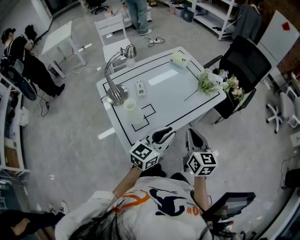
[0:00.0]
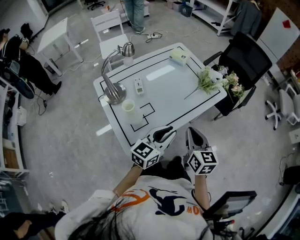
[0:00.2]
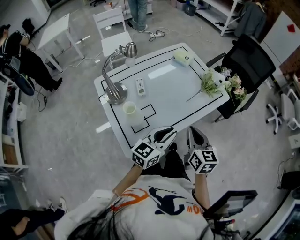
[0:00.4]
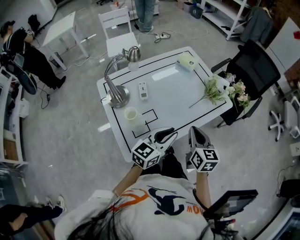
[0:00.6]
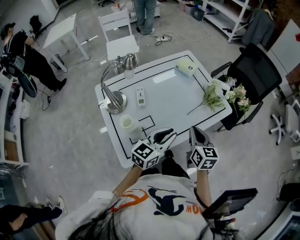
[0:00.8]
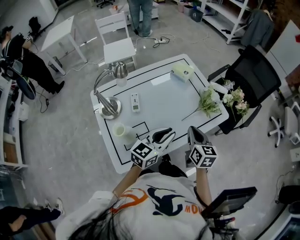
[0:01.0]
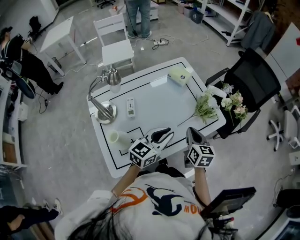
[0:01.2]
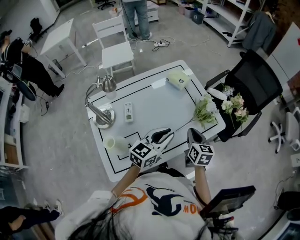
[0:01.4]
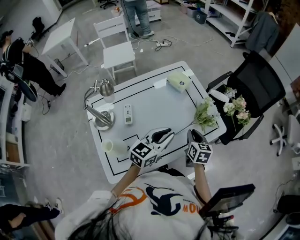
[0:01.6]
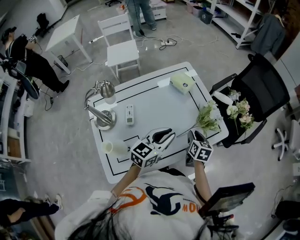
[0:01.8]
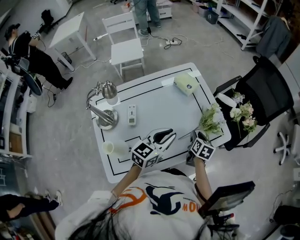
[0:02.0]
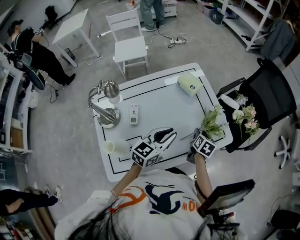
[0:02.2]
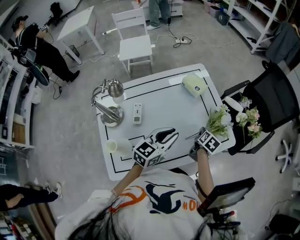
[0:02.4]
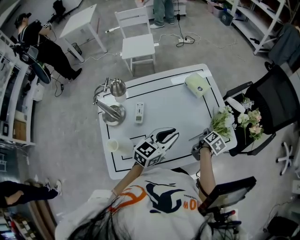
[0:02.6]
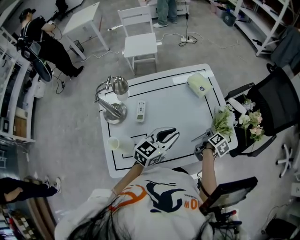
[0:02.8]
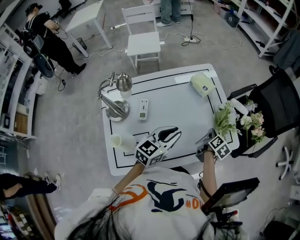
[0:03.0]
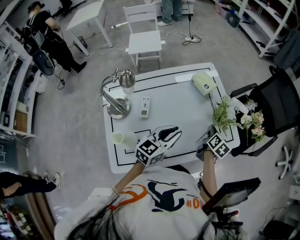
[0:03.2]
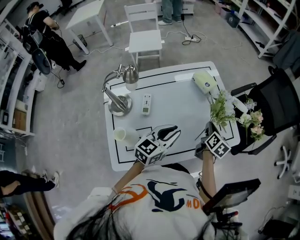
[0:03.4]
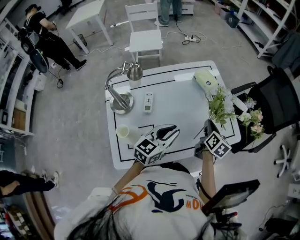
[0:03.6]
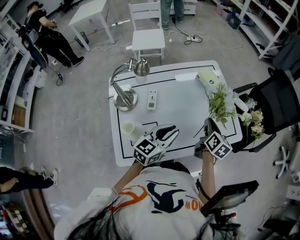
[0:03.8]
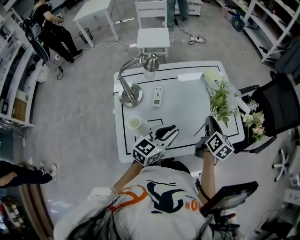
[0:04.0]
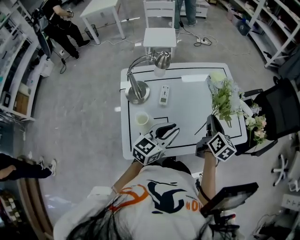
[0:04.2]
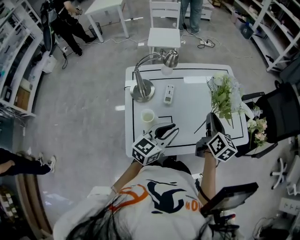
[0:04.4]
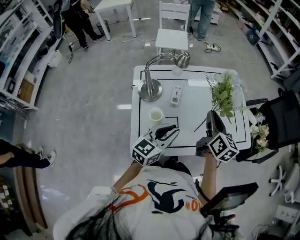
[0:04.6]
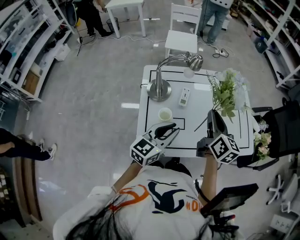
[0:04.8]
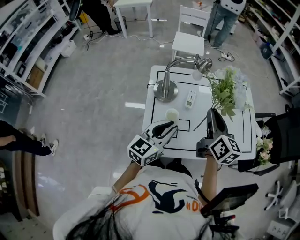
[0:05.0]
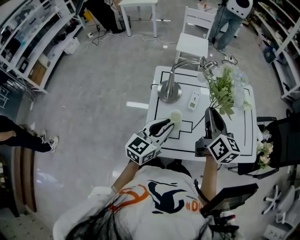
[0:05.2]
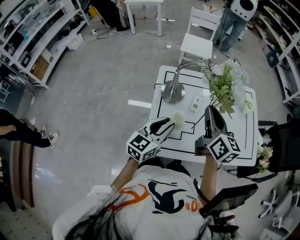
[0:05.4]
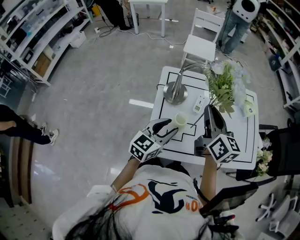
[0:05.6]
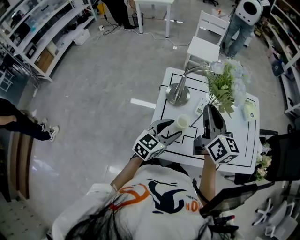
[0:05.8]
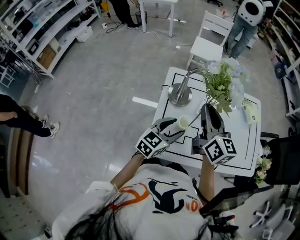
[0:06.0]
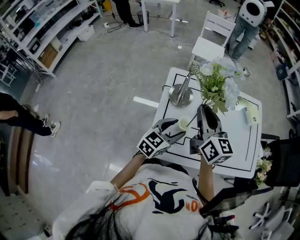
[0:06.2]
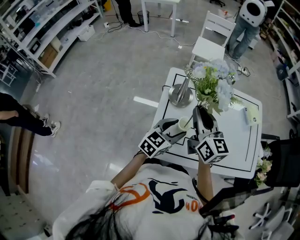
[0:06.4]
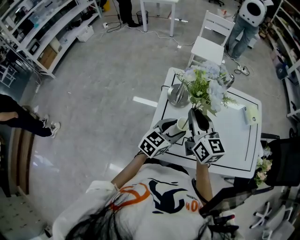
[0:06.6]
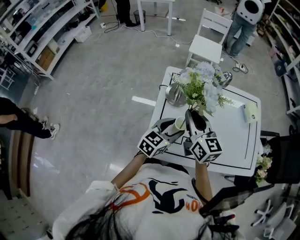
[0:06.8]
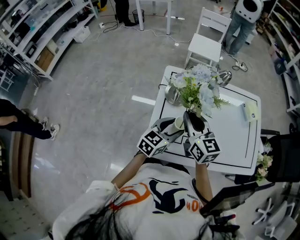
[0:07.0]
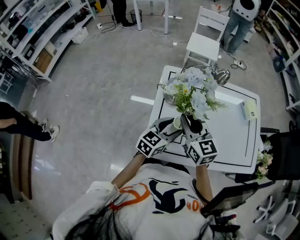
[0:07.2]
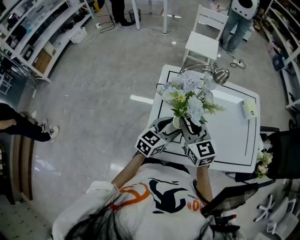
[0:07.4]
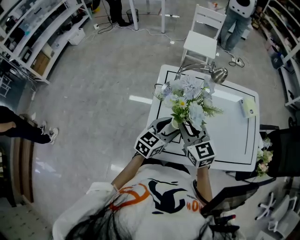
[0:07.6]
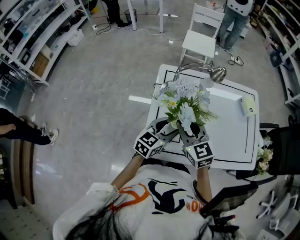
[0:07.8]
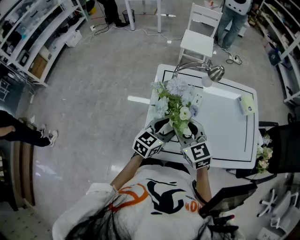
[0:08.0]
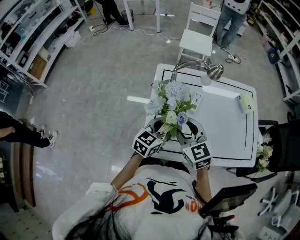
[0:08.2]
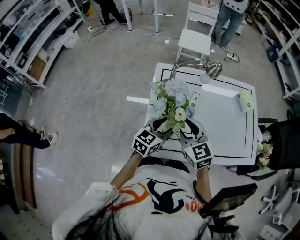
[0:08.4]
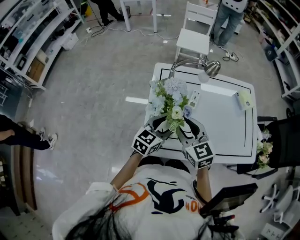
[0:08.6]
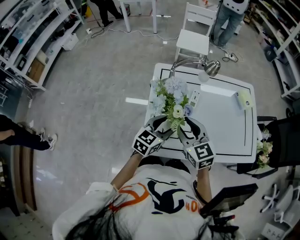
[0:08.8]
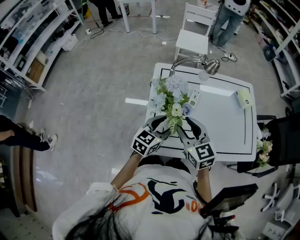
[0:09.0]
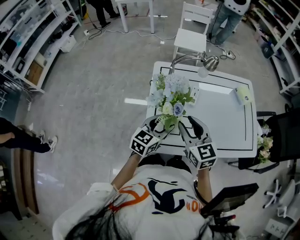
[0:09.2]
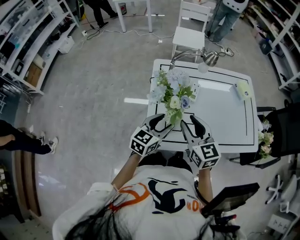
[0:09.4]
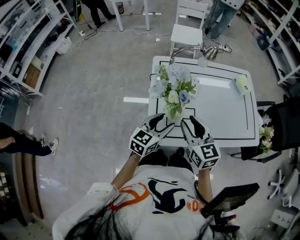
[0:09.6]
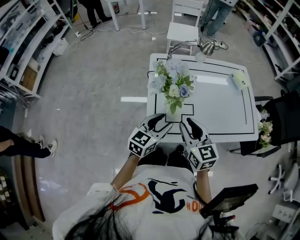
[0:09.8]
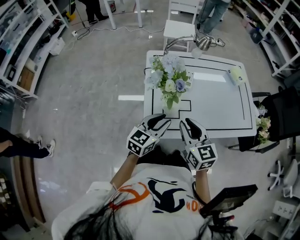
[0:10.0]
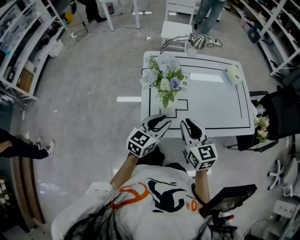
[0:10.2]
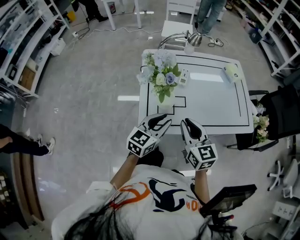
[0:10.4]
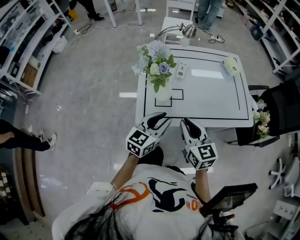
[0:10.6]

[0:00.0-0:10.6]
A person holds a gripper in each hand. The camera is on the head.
0:00.0 to 0:01.6: The right gripper shifts approximately 30 cm forward and downward, while the left gripper moves forward, roughly 25 cm.
0:01.6 to 0:03.0: The right gripper goes about 10 cm forward and downward, changes its angle by some 30 degrees, and opens, then closes again.
0:03.0 to 0:04.6: The right gripper goes about 35 cm upward, to the left and backward, and swivels about 40 degrees. Meanwhile the left gripper goes approximately 20 cm backward and to the left.
0:04.6 to 0:06.0: The left gripper travels to the left by about 10 cm, and opens. Meanwhile the right gripper goes some 20 cm to the left, and rotates about 30 degrees.
0:06.0 to 0:07.6: The right gripper goes about 10 cm downward, and swivels some 30 degrees.
0:07.6 to 0:09.0: The right gripper opens its fingers.
0:09.0 to 0:10.6: The left gripper is displaced backward by roughly 15 cm, and closes up, while the right gripper moves backward and to the right, about 15 cm, and closes its fingers.

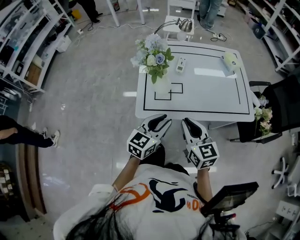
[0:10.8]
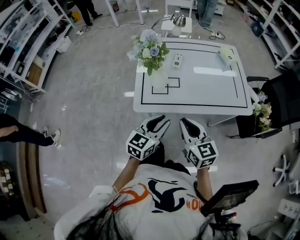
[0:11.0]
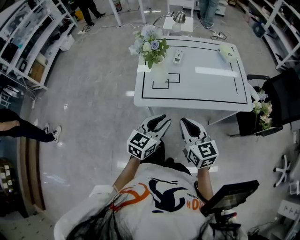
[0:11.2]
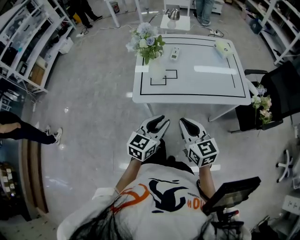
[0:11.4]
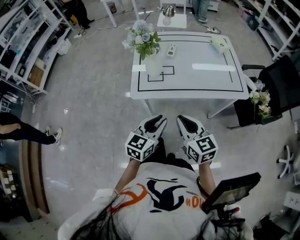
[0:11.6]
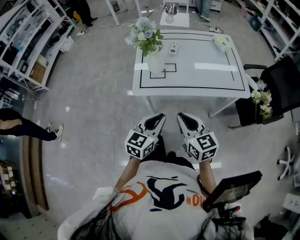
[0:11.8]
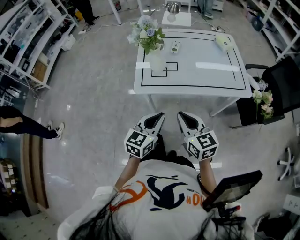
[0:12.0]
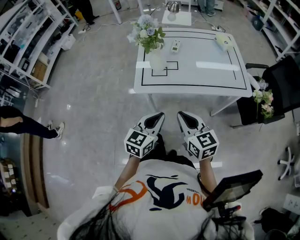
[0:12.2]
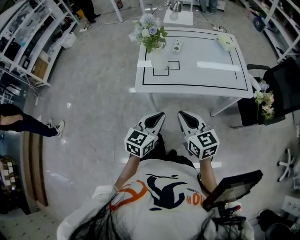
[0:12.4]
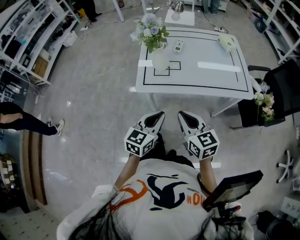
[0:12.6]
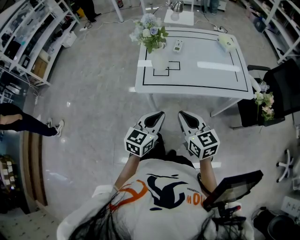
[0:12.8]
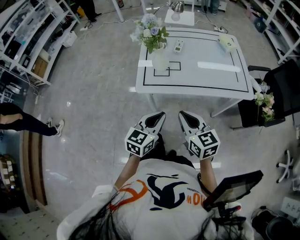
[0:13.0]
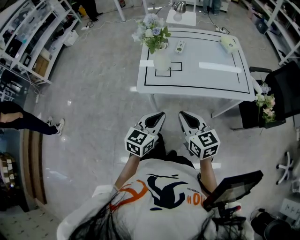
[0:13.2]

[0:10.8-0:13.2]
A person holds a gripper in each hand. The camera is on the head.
0:10.8 to 0:12.0: The grippers both shift backward by some 15 cm. The left gripper closes up.
0:12.0 to 0:13.2: The two grippers keep their place.

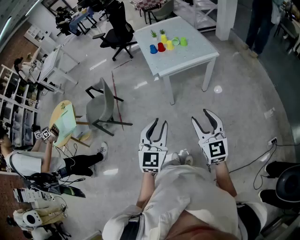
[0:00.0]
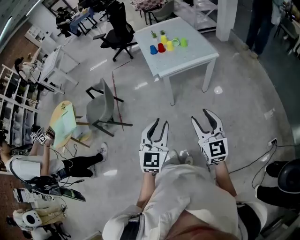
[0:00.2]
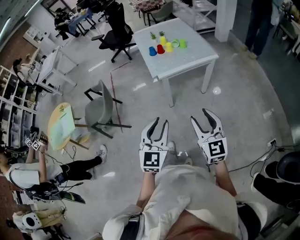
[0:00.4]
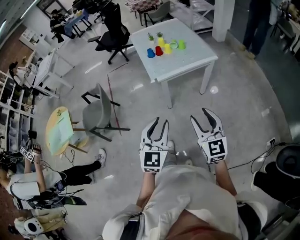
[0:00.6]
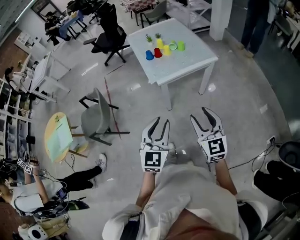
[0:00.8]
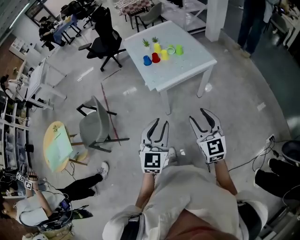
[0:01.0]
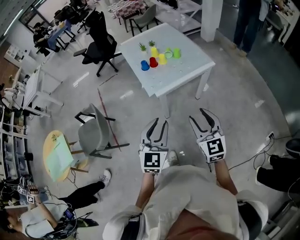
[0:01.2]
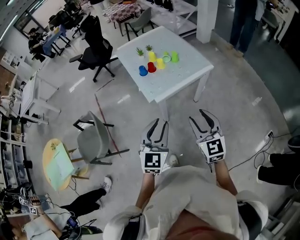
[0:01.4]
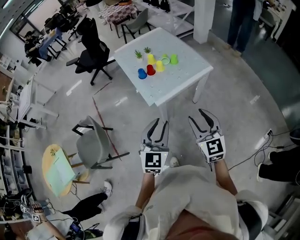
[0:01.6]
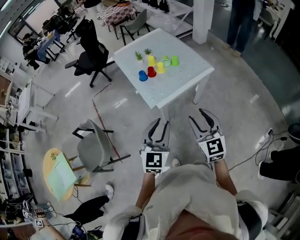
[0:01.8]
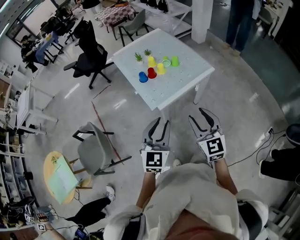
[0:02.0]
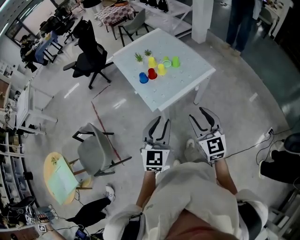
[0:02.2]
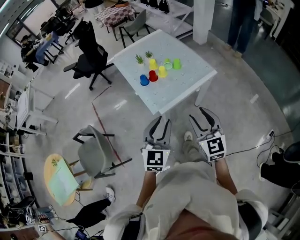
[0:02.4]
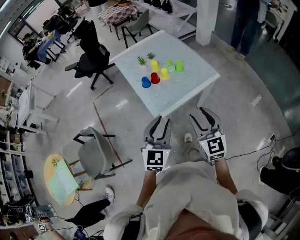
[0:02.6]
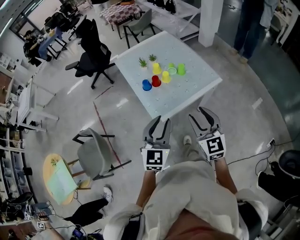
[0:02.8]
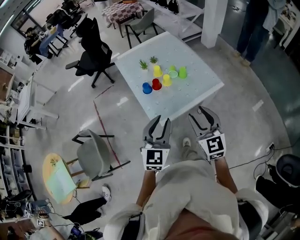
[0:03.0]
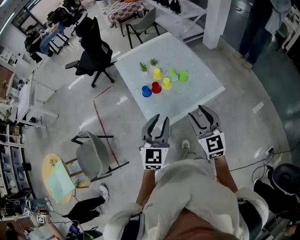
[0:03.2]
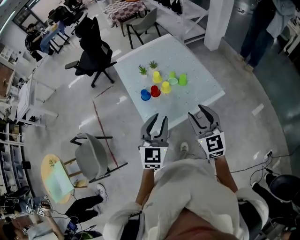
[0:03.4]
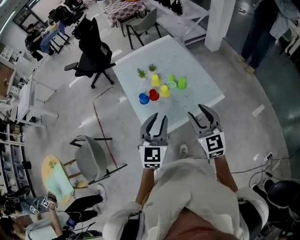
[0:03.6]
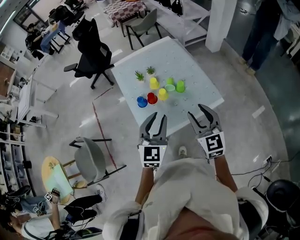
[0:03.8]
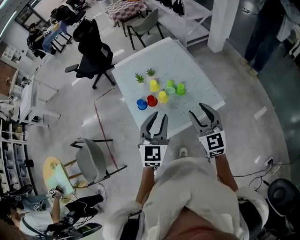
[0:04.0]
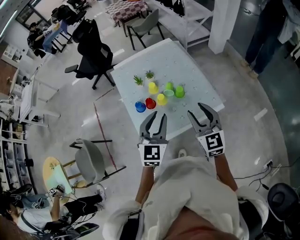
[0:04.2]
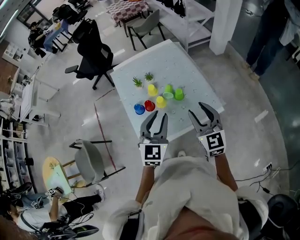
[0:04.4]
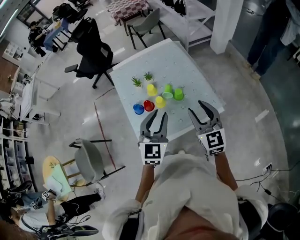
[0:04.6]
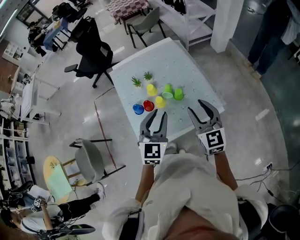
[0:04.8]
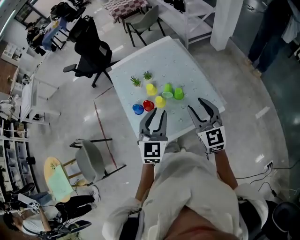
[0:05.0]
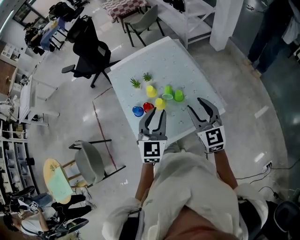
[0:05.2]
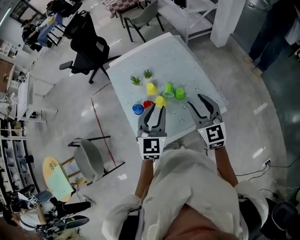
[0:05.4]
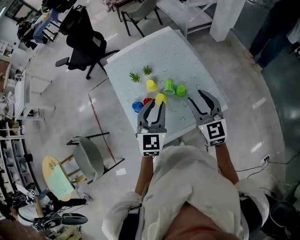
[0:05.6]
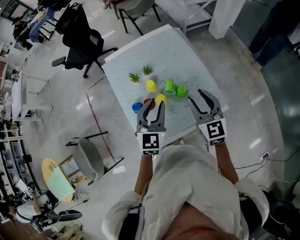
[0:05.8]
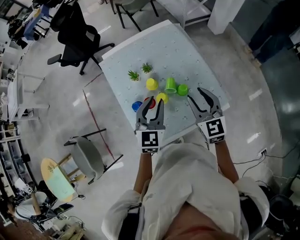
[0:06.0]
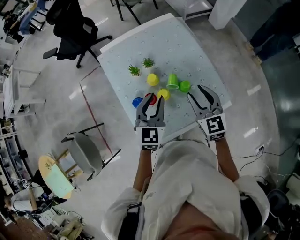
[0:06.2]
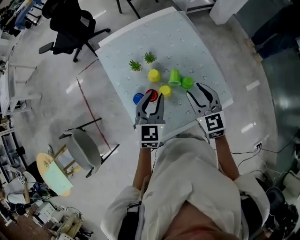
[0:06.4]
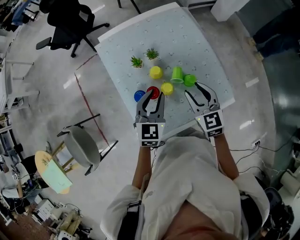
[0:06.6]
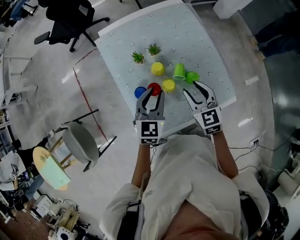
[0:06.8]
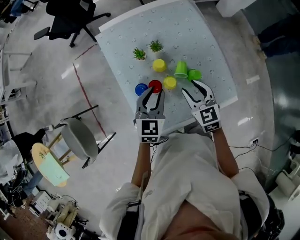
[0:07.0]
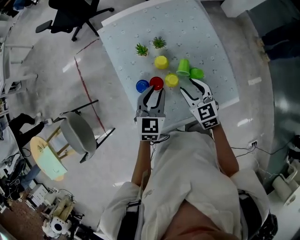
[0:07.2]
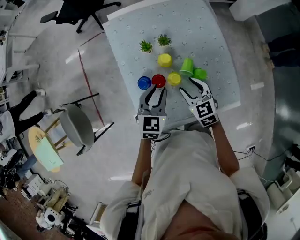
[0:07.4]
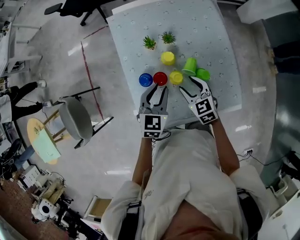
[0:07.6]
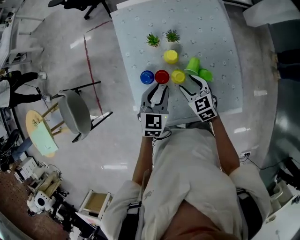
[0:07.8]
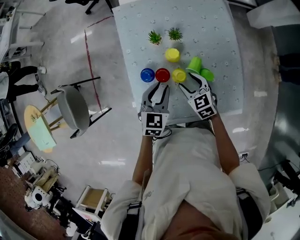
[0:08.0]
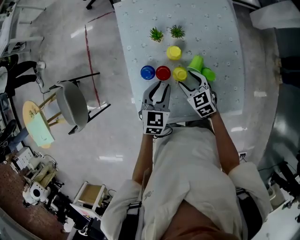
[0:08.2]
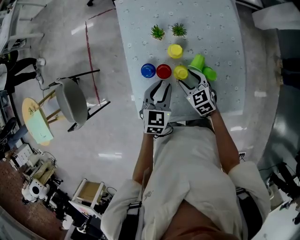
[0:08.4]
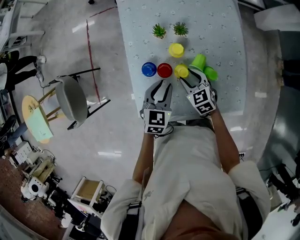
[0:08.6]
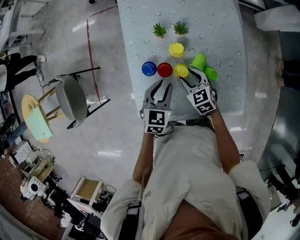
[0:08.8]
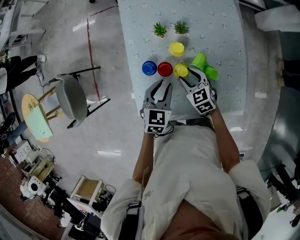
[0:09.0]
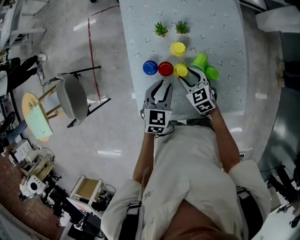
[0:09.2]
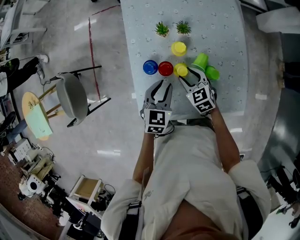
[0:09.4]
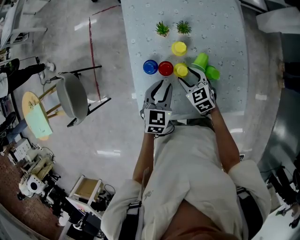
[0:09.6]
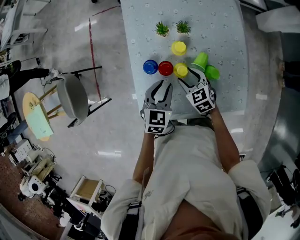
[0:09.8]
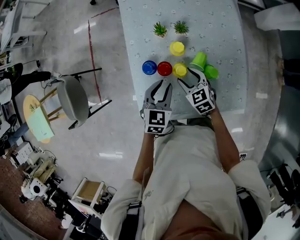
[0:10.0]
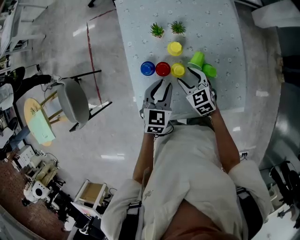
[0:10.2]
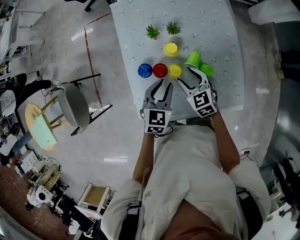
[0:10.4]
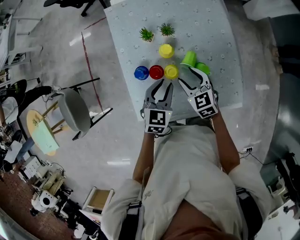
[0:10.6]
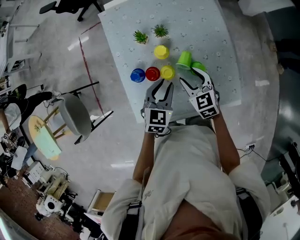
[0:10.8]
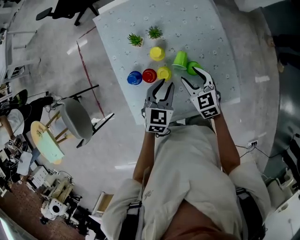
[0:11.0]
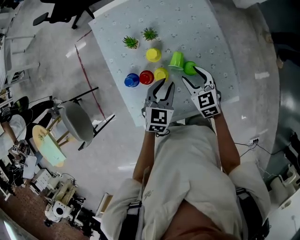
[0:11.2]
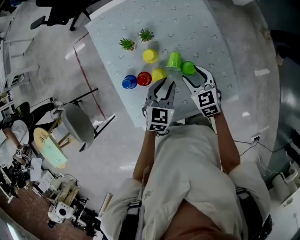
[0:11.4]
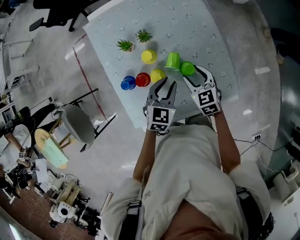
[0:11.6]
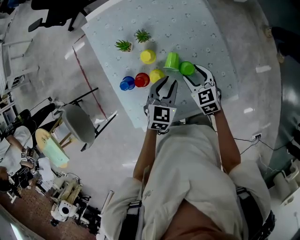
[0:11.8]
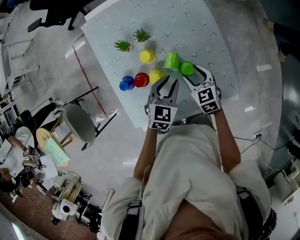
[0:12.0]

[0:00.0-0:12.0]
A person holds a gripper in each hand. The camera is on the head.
0:00.0 to 0:01.6: The grippers both shift forward by some 25 cm.
0:01.6 to 0:03.0: The grippers both shift forward by some 15 cm.
0:03.0 to 0:04.4: Both grippers travel together forward and to the right, some 20 cm.
0:04.4 to 0:06.0: The grippers both shift forward and downward by roughly 15 cm.
0:06.0 to 0:07.6: The left gripper goes approximately 15 cm downward and to the left. The right gripper heads downward and to the left, covering approximately 20 cm, and rotates roughly 30 degrees.
0:07.6 to 0:09.0: The right gripper shifts roughly 5 cm downward. Meanwhile the left gripper ends up approximately 5 cm from where it was.
0:09.0 to 0:10.4: There are only small adjustments of the grippers.
0:10.4 to 0:12.0: Both grippers travel together to the right, roughly 10 cm.
